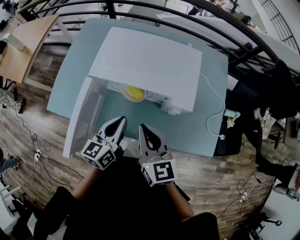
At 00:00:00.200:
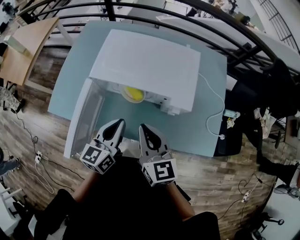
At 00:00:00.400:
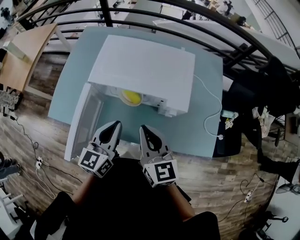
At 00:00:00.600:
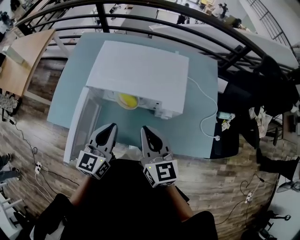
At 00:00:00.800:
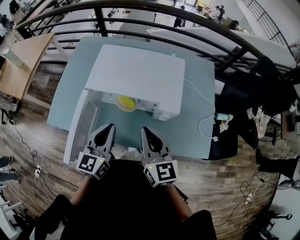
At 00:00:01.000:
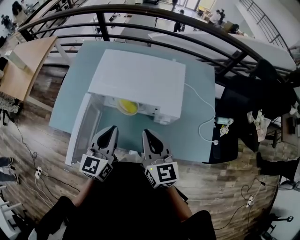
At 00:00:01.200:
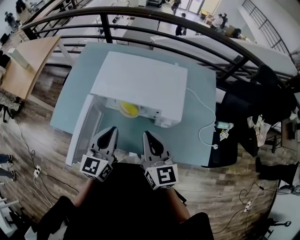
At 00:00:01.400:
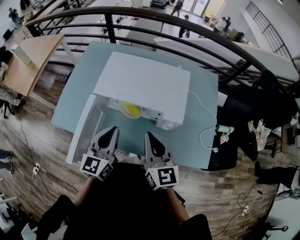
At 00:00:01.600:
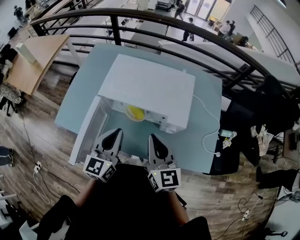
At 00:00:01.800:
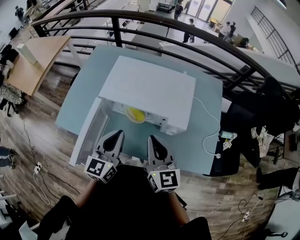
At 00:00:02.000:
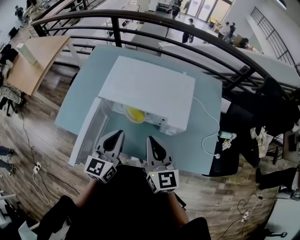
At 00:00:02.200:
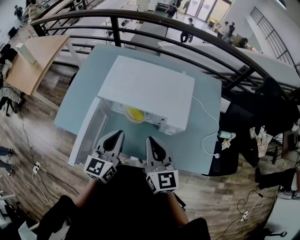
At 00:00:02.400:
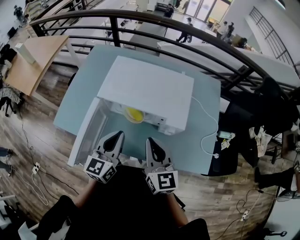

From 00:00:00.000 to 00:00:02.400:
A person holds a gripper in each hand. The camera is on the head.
From 00:00:00.000 to 00:00:01.200: The right gripper changes place by about 5 cm.

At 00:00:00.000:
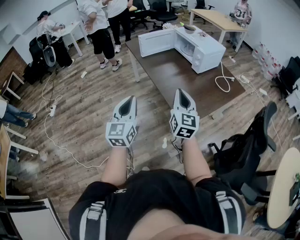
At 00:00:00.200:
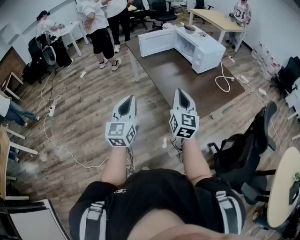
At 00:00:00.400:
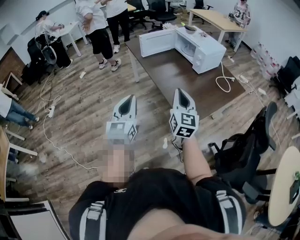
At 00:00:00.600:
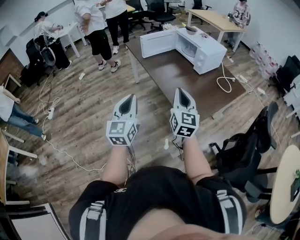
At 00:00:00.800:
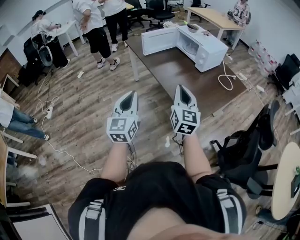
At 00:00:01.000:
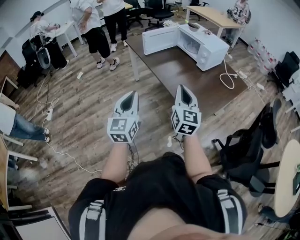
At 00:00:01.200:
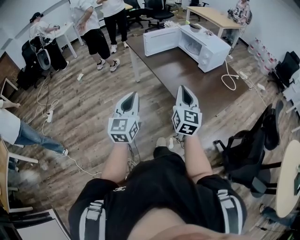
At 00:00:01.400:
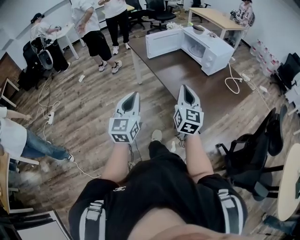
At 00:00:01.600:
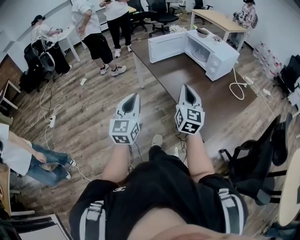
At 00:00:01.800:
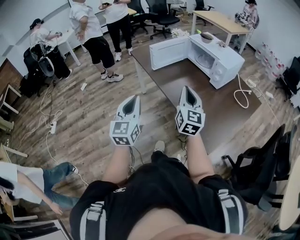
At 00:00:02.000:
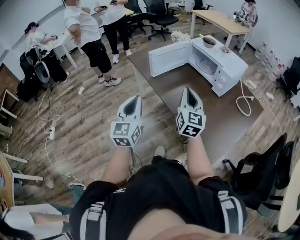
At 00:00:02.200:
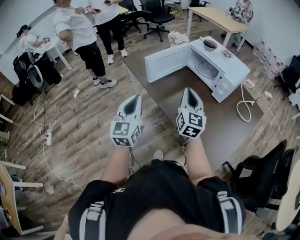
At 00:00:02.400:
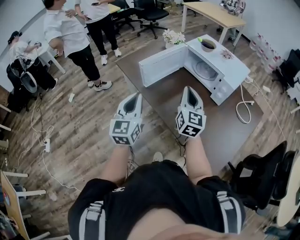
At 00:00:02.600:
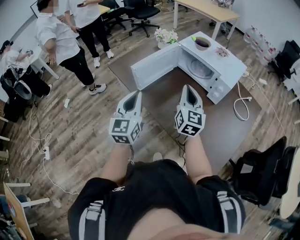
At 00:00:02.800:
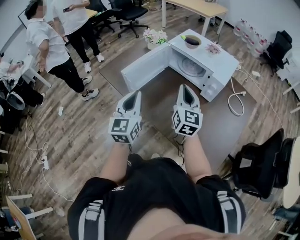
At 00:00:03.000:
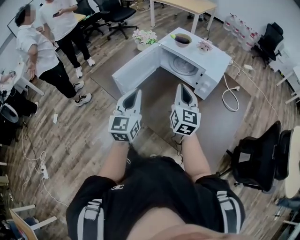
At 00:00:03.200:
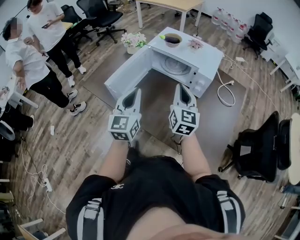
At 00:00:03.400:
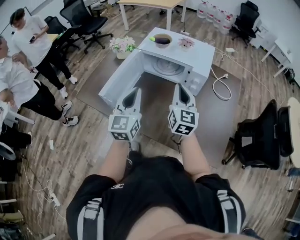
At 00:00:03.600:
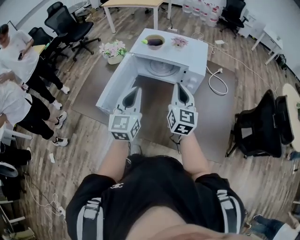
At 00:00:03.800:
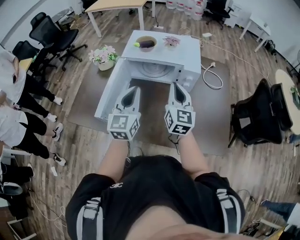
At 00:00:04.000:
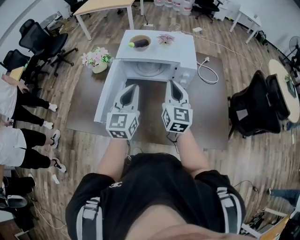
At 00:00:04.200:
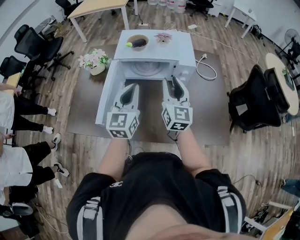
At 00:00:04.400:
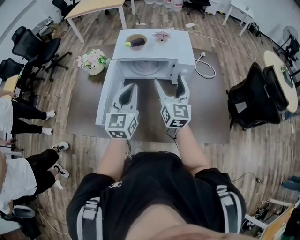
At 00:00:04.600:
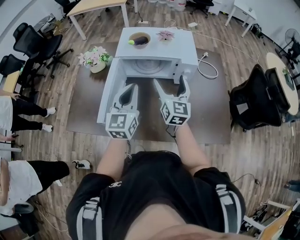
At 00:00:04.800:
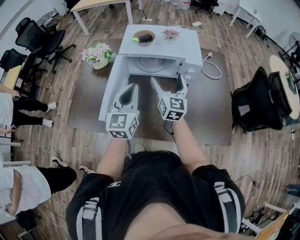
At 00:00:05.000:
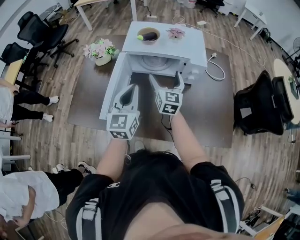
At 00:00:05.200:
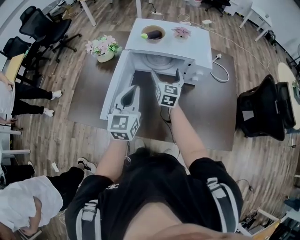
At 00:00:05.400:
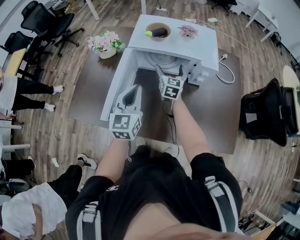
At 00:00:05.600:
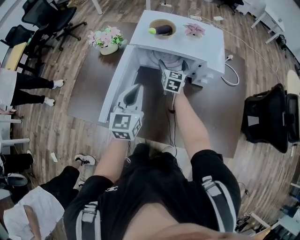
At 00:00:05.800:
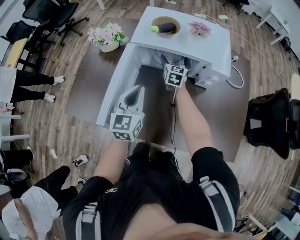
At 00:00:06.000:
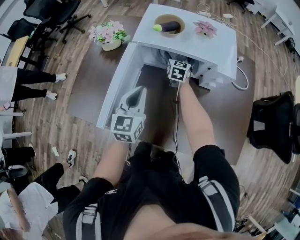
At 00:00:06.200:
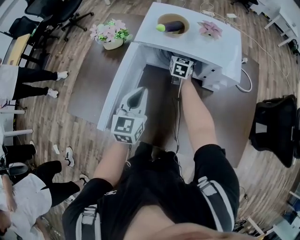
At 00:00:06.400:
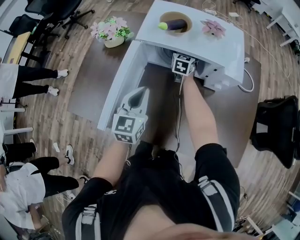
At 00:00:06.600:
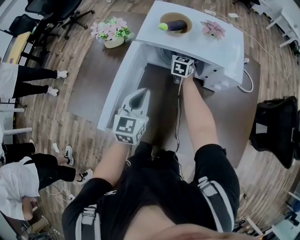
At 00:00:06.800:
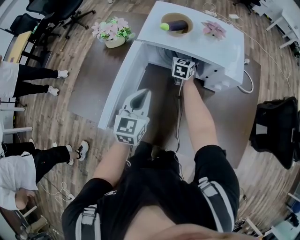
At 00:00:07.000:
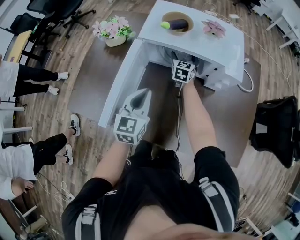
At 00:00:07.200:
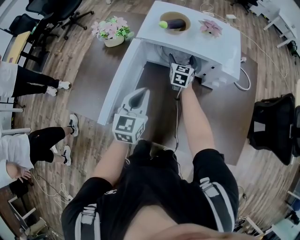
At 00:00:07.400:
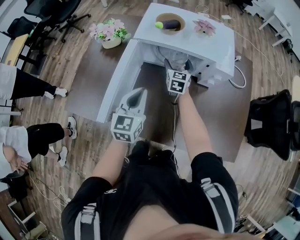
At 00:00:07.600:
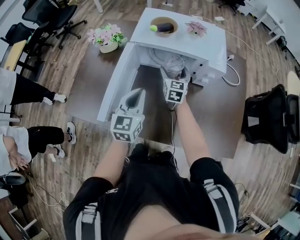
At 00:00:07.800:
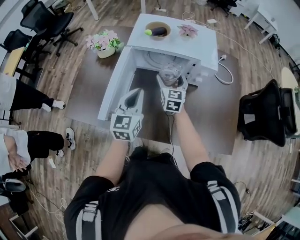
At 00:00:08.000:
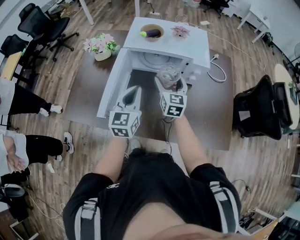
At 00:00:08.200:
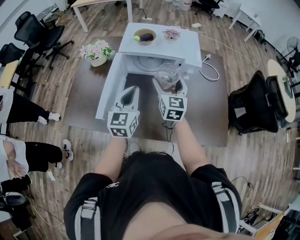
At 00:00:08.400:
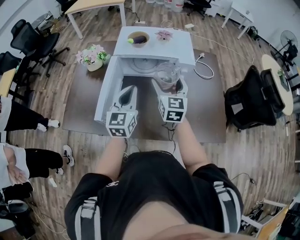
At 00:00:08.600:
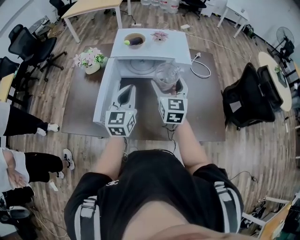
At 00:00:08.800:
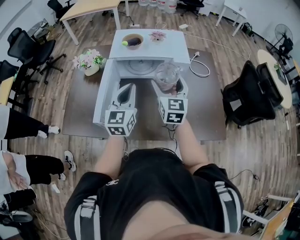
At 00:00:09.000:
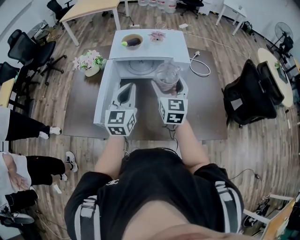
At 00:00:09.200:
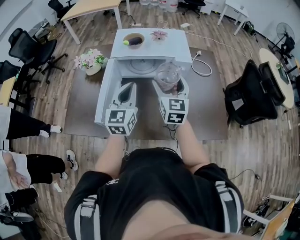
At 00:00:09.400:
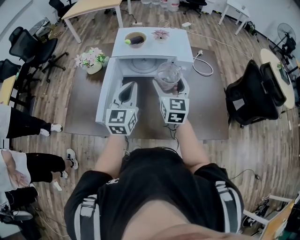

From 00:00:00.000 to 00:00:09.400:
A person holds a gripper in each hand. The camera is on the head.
From 00:00:00.000 to 00:00:01.600: The right gripper goes approximately 20 cm forward and to the left, while the left gripper is displaced to the left and forward by some 20 cm.
From 00:00:01.600 to 00:00:03.200: The two grippers travel together, roughly 50 cm. The left gripper turns by roughly 30 degrees; the right gripper rotates about 20 degrees.
From 00:00:03.200 to 00:00:04.800: The left gripper shifts by approximately 15 cm, and turns by roughly 30 degrees; the right gripper ends up about 15 cm from where it was, turns by about 20 degrees, and opens its fingers.
From 00:00:04.800 to 00:00:06.200: The right gripper travels forward and downward by about 35 cm, and changes its angle by some 20 degrees. The left gripper is displaced downward and forward by some 15 cm.
From 00:00:06.200 to 00:00:07.800: The right gripper heads backward and upward, covering about 20 cm, while the left gripper is displaced backward by approximately 5 cm.
From 00:00:07.800 to 00:00:09.400: The right gripper goes roughly 20 cm upward, backward and to the right. Meanwhile the left gripper goes approximately 10 cm upward.

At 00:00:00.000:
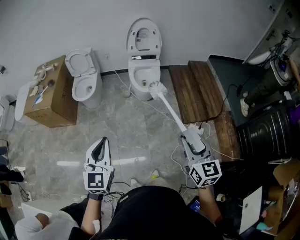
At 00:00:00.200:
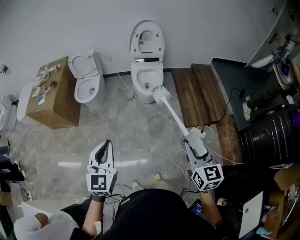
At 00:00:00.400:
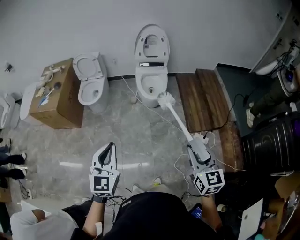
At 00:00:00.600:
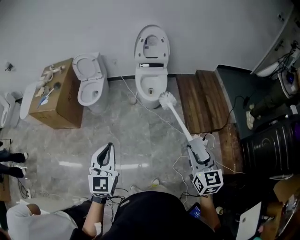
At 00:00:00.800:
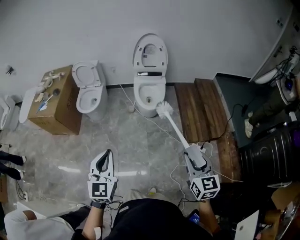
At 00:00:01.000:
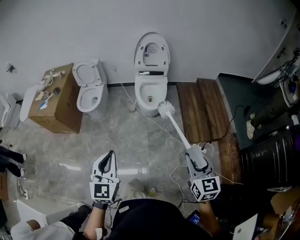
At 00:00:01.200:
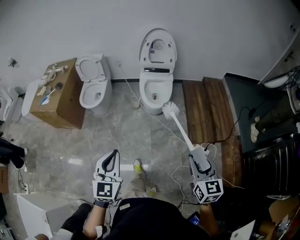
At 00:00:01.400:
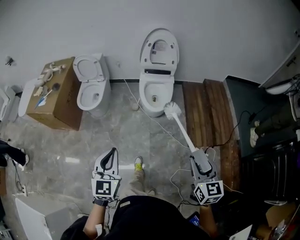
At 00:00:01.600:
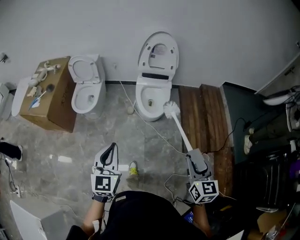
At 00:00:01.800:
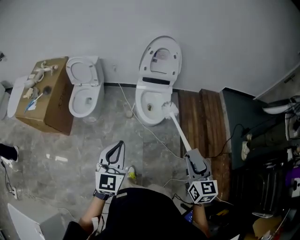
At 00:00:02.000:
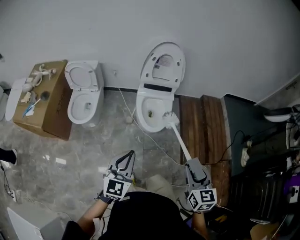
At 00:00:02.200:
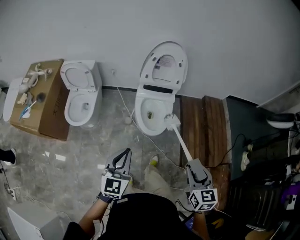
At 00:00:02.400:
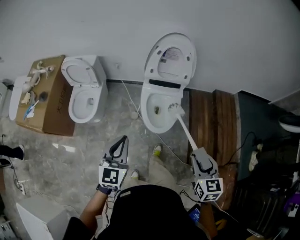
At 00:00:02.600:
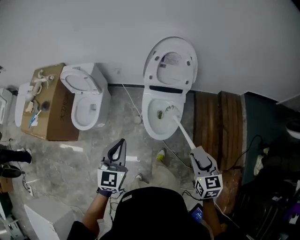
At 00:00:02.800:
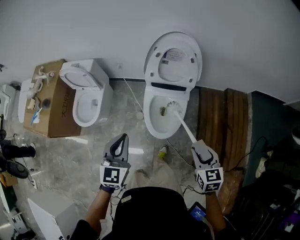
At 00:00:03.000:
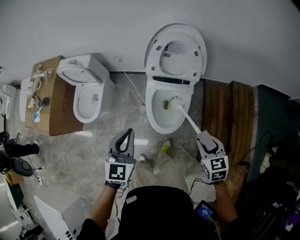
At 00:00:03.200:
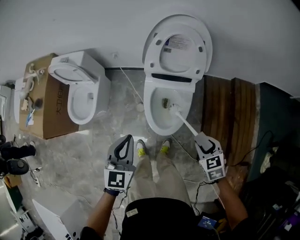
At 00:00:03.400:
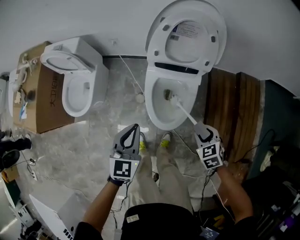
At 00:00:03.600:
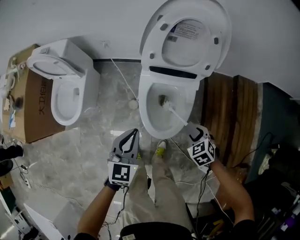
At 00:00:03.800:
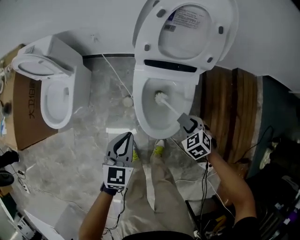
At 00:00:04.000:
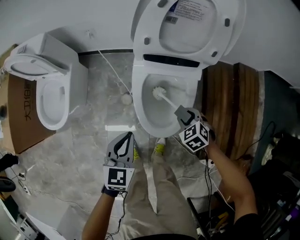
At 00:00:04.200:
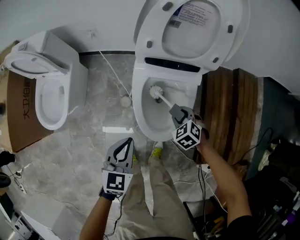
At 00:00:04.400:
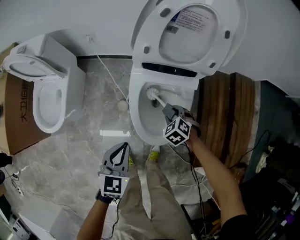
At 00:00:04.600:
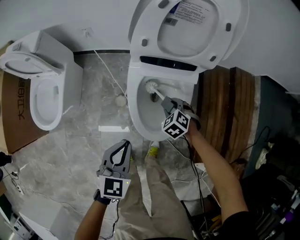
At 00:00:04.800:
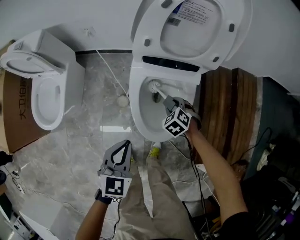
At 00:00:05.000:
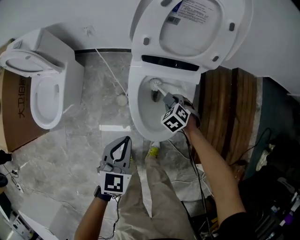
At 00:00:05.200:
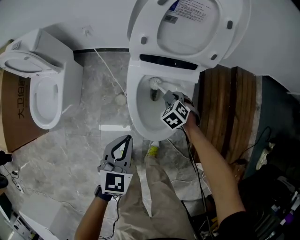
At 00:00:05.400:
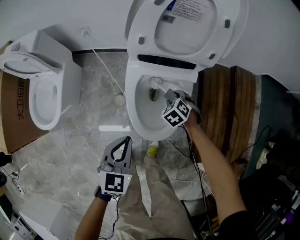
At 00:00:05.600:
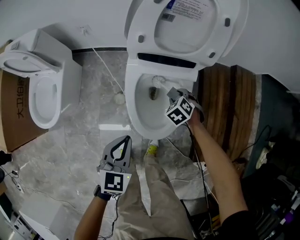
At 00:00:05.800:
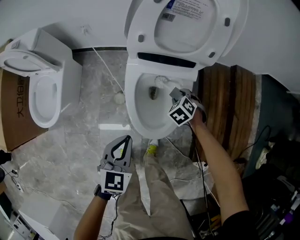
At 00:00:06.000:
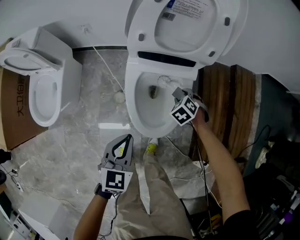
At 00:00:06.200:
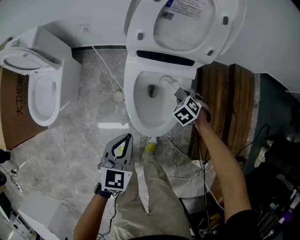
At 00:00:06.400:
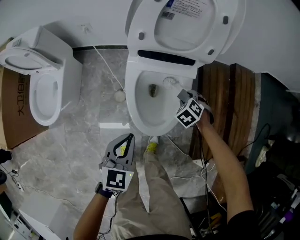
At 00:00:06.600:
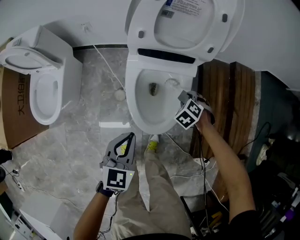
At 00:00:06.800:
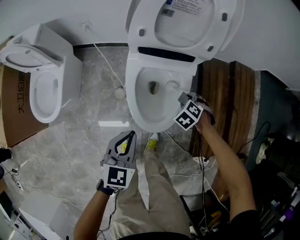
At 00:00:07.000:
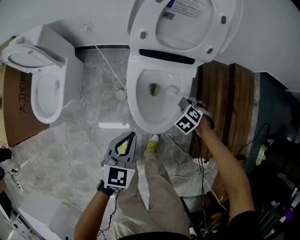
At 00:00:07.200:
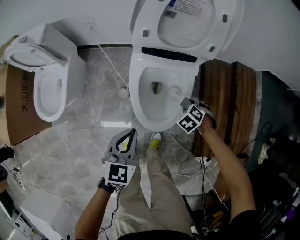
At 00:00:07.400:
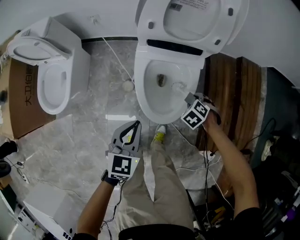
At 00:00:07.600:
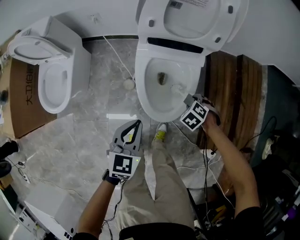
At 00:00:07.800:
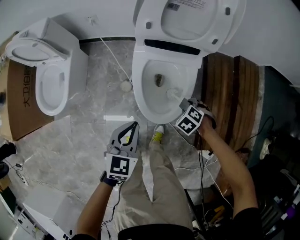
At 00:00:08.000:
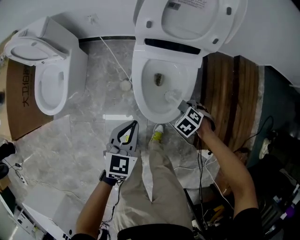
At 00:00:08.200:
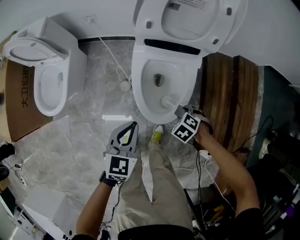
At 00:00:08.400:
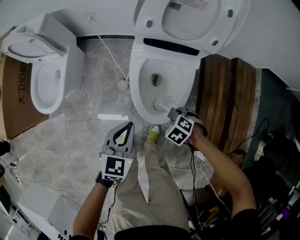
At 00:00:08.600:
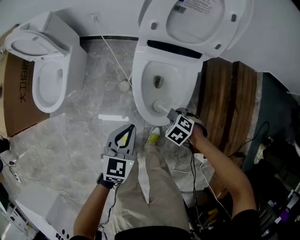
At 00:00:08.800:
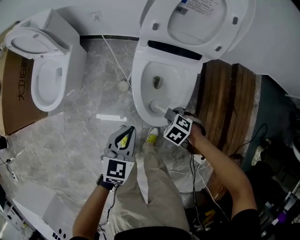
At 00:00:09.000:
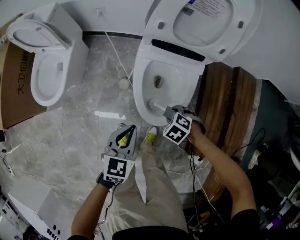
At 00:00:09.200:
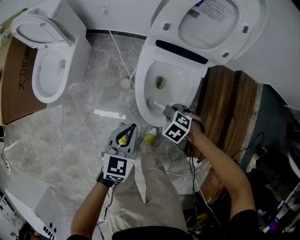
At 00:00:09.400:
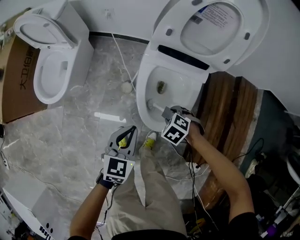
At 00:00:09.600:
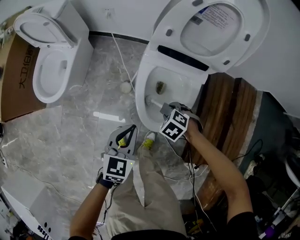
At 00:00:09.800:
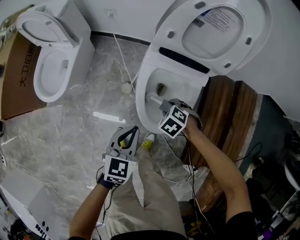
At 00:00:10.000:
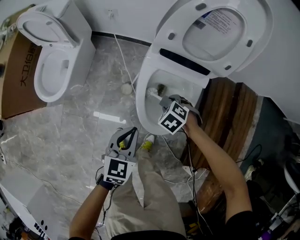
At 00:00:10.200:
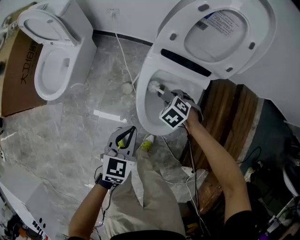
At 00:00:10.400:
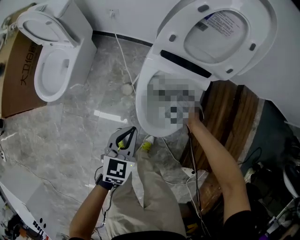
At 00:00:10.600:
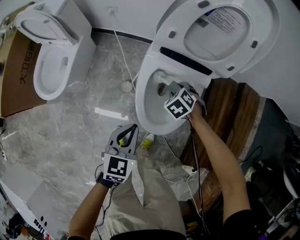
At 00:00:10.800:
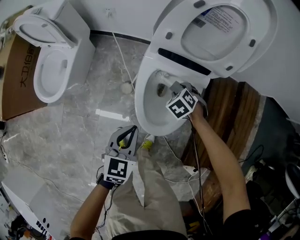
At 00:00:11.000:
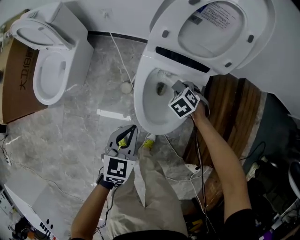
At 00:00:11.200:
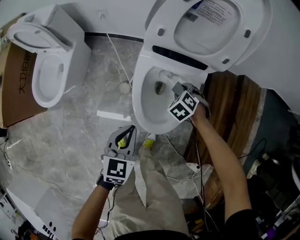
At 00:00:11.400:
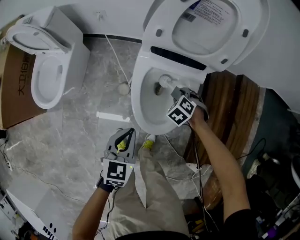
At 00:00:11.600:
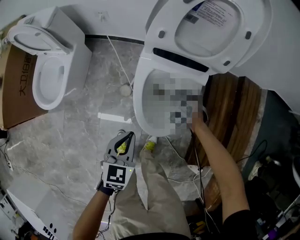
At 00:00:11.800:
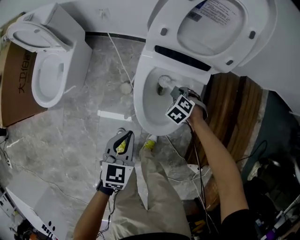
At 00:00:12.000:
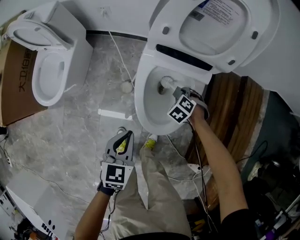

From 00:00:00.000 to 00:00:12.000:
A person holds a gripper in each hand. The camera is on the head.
From 00:00:00.000 to 00:00:01.600: The left gripper ends up about 25 cm from where it was.
From 00:00:01.600 to 00:00:03.000: The left gripper shifts by some 50 cm.
From 00:00:03.000 to 00:00:04.400: The left gripper travels downward by approximately 30 cm, and turns by some 20 degrees.
